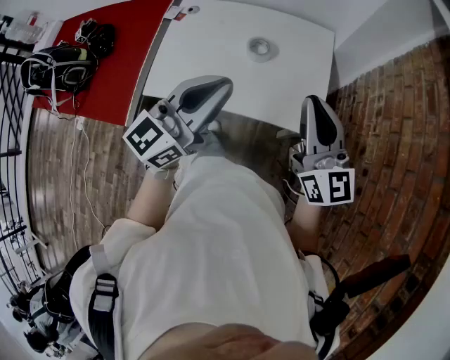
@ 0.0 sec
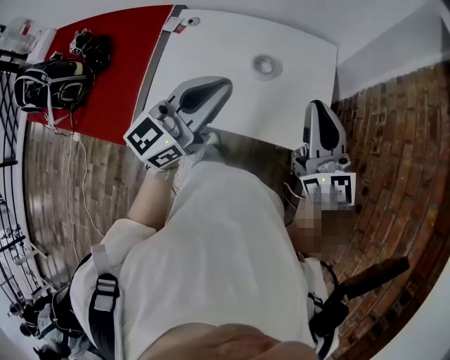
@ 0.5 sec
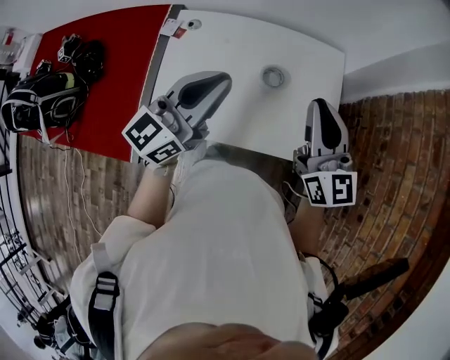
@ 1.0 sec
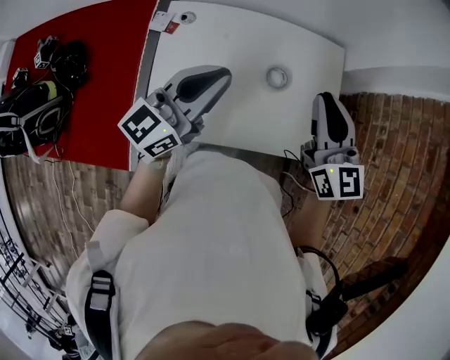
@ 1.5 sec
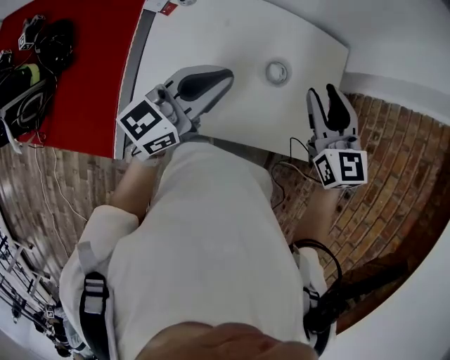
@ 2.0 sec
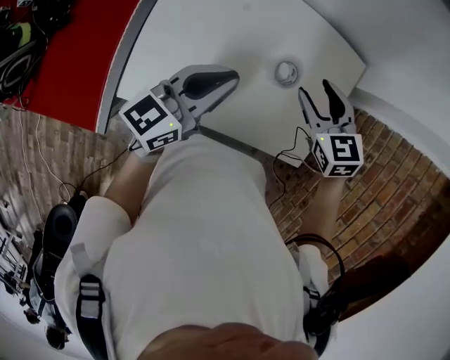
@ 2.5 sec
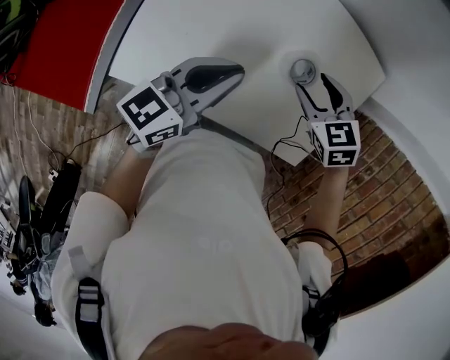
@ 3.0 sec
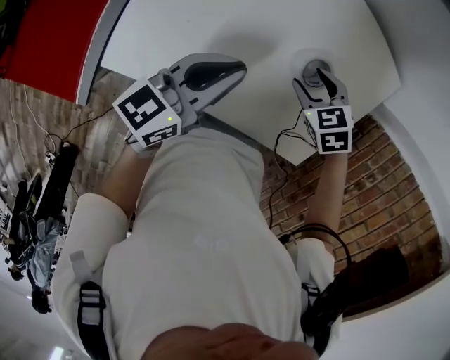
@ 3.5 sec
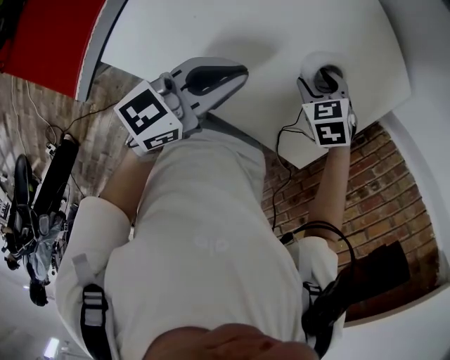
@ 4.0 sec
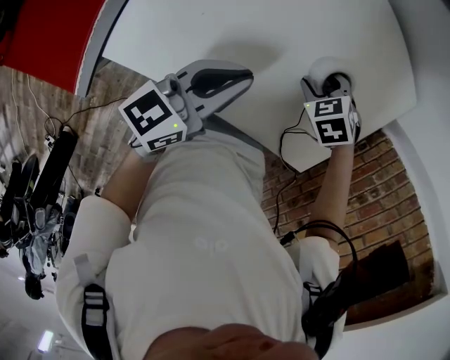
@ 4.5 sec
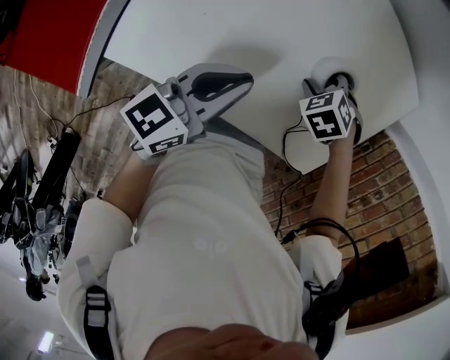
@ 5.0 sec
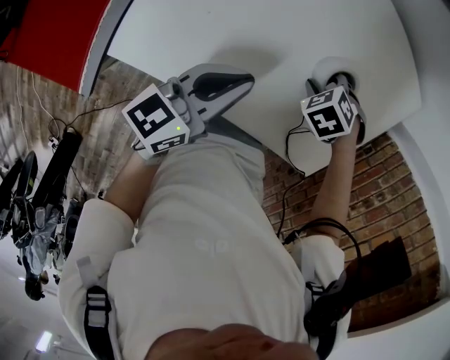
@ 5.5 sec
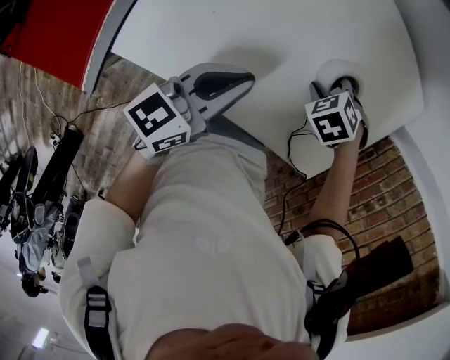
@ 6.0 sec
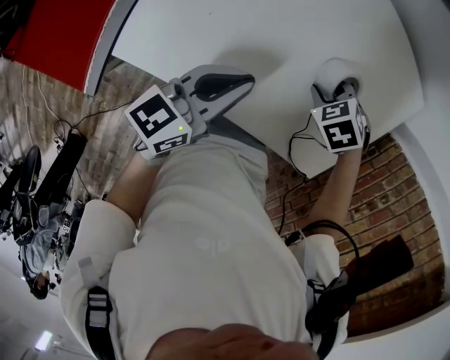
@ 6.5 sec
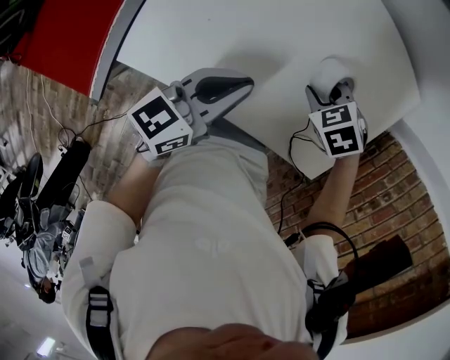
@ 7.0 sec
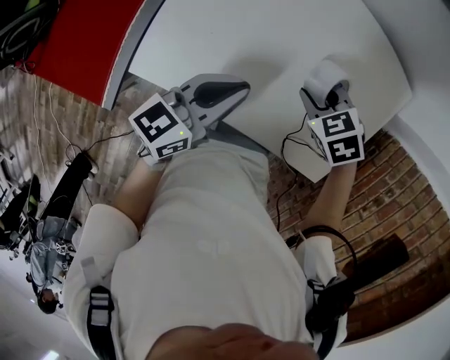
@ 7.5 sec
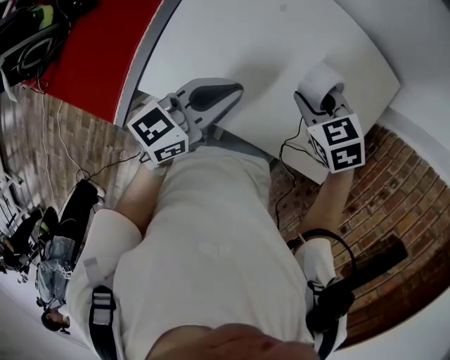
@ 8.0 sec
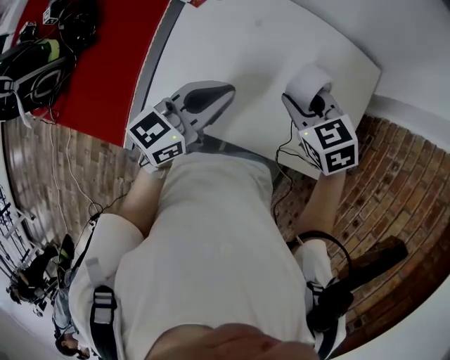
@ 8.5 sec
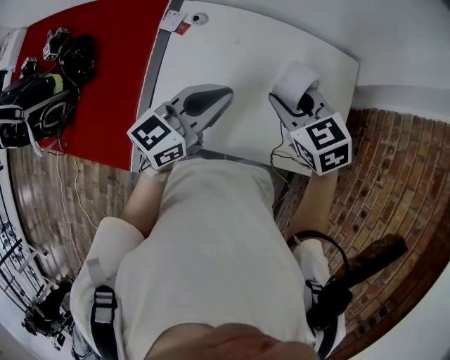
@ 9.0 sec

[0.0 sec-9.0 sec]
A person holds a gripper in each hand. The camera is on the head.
0.0 sec to 2.0 sec: The right gripper goes about 35 cm forward and to the left, tilts its fingers about 30 degrees downward, and opens its fingers. Meanwhile the left gripper heads to the left, forward and downward, covering about 35 cm.
2.0 sec to 4.5 sec: The right gripper moves downward, about 40 cm, and tilts its fingers about 60 degrees downward, while the left gripper goes approximately 25 cm downward, and turns by roughly 30 degrees.
4.5 sec to 7.0 sec: The right gripper closes.
7.0 sec to 9.0 sec: The two grippers go about 25 cm upward. The left gripper rotates approximately 30 degrees, while the right gripper tilts its fingers some 40 degrees upward.

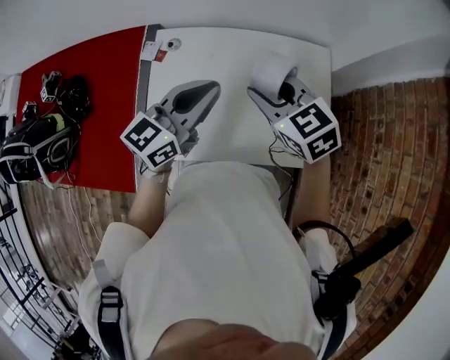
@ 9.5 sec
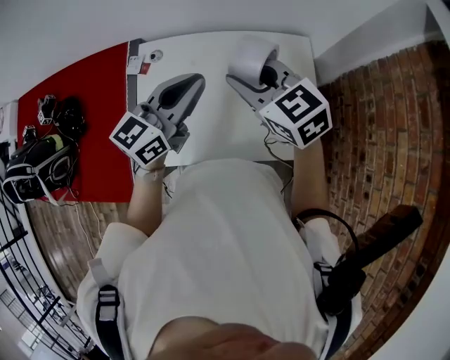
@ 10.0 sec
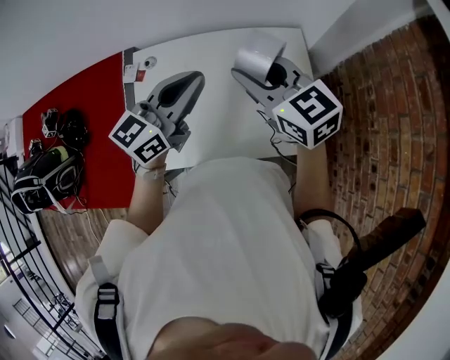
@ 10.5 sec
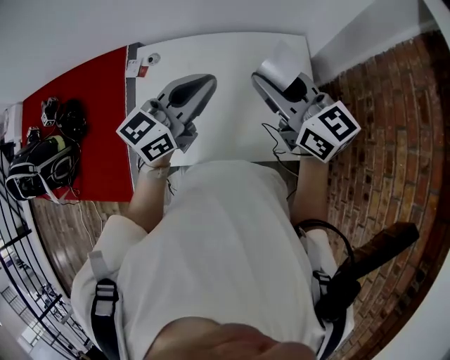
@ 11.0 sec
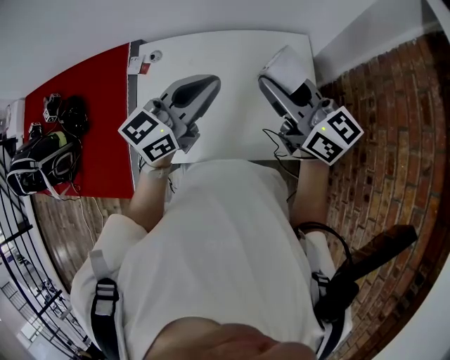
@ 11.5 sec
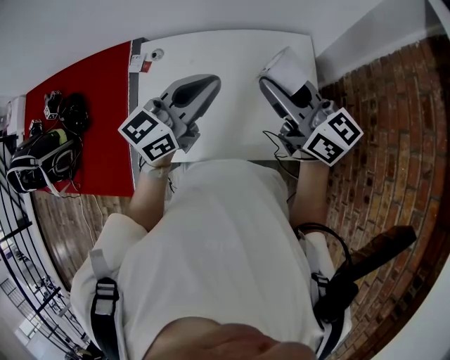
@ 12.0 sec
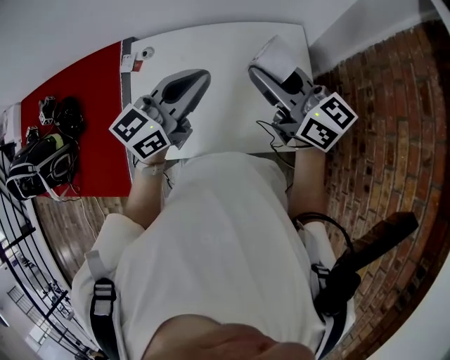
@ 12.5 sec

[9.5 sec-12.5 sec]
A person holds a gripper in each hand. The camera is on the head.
9.5 sec to 11.0 sec: The left gripper travels to the right by approximately 10 cm. Meanwhile the right gripper shifts some 15 cm to the right and upward, and angles its fingers upward, by approximately 30 degrees.
11.0 sec to 12.5 sec: The grippers stay close to where they were, moving slightly.

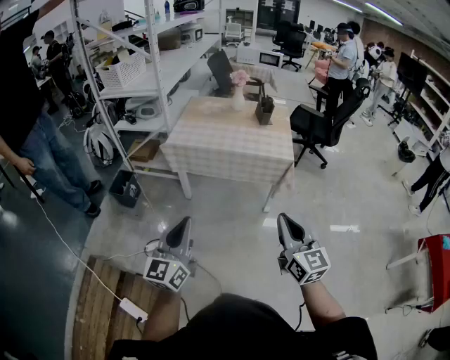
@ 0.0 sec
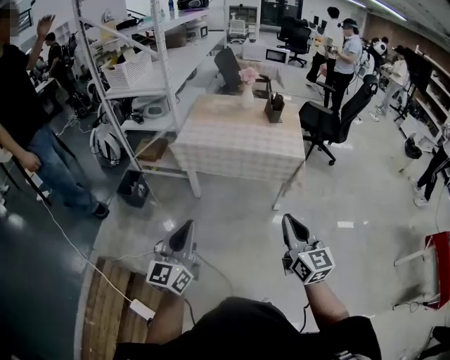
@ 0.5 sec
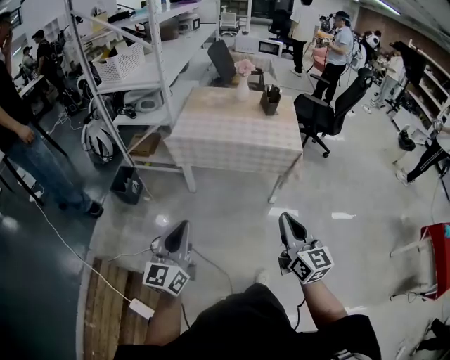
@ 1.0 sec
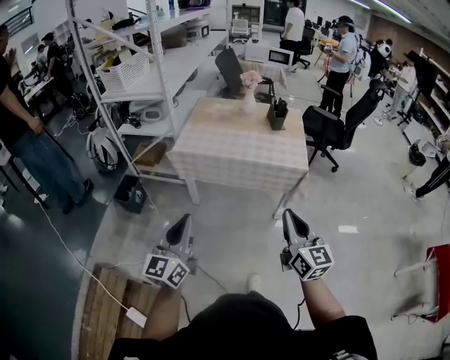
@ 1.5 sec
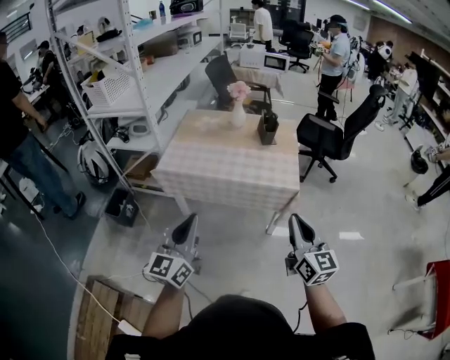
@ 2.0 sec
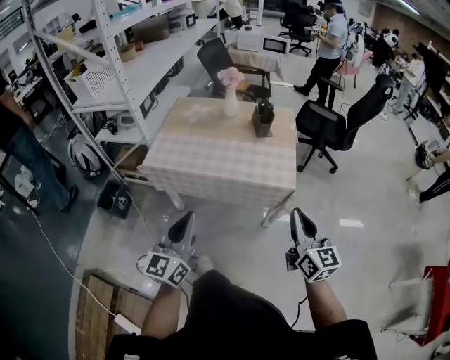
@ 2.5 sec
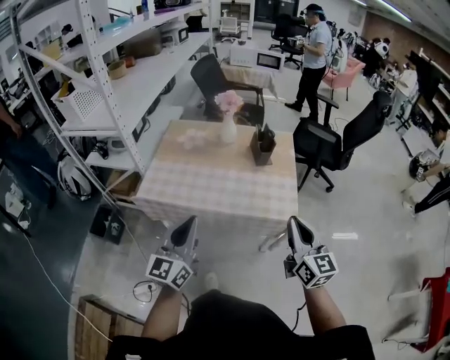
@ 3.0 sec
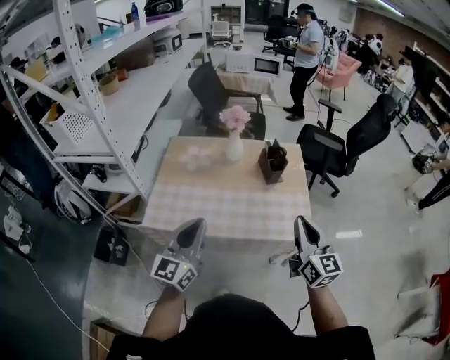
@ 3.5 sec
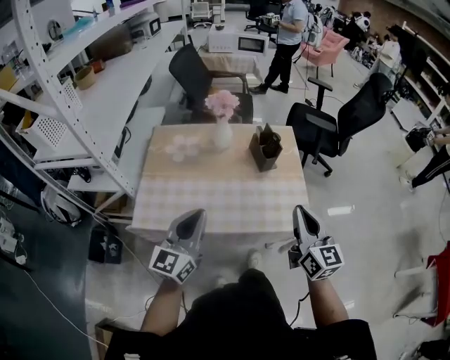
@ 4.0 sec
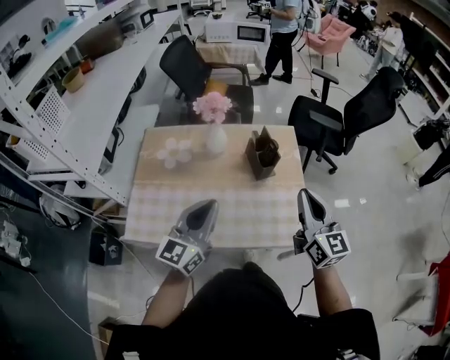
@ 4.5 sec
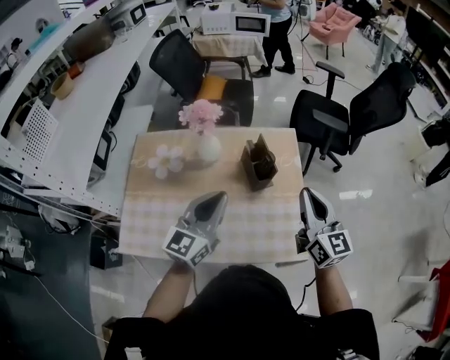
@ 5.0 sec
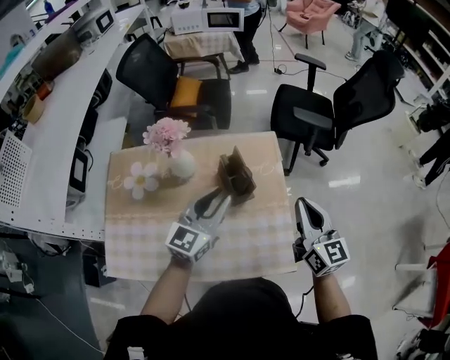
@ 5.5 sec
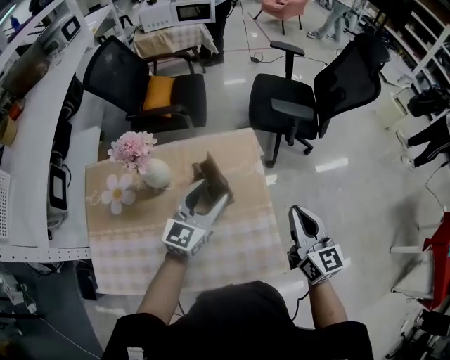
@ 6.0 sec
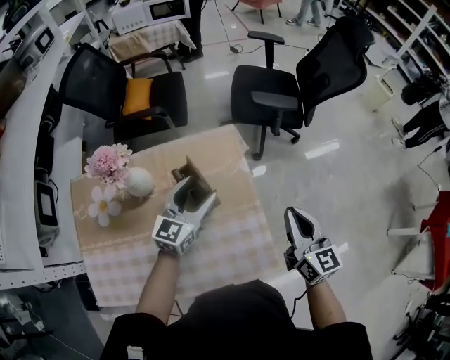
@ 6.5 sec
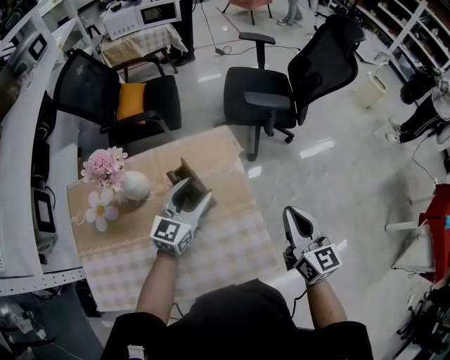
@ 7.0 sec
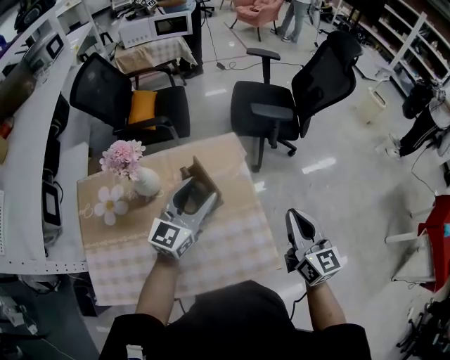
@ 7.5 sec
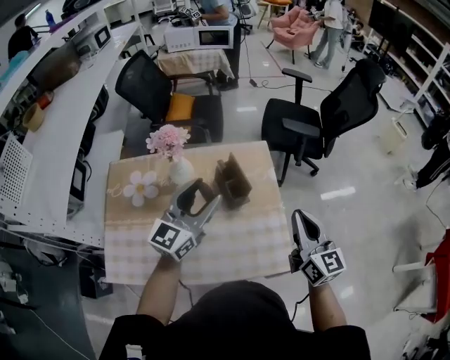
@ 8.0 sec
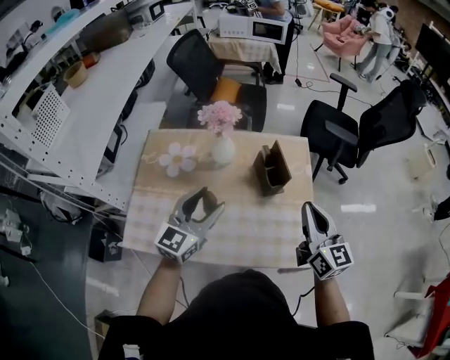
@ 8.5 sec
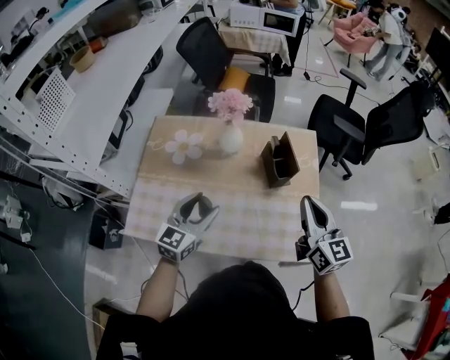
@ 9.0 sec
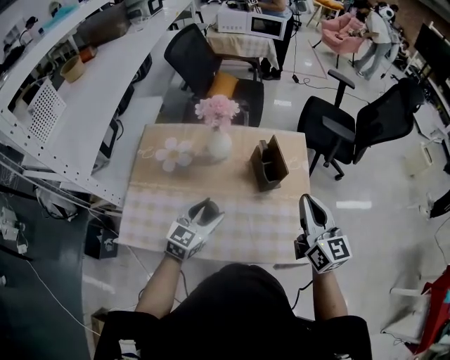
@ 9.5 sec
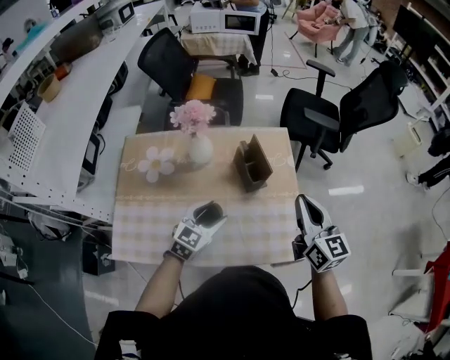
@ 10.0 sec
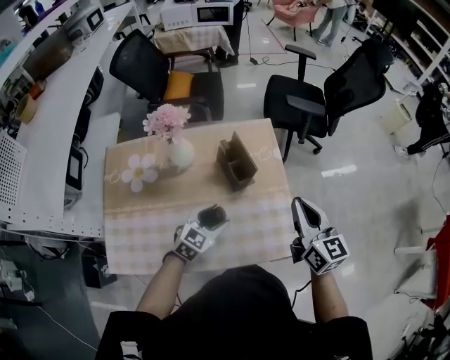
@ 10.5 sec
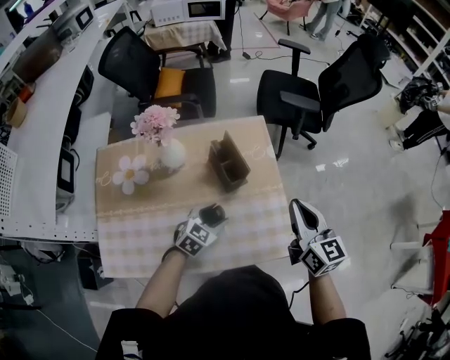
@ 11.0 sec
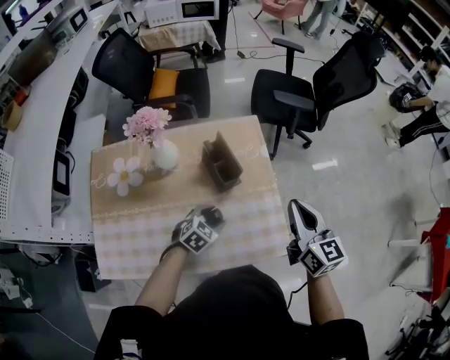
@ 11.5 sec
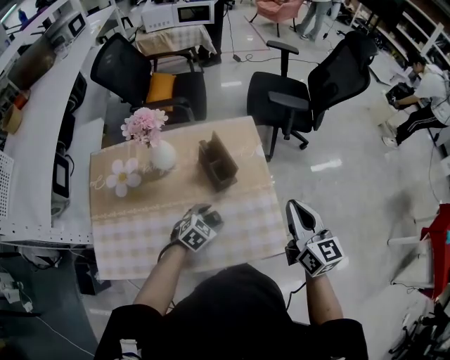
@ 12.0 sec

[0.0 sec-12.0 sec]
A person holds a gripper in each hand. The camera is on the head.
0.0 sec to 2.0 sec: The two grippers go approximately 25 cm forward.
2.0 sec to 4.0 sec: Both grippers move forward, some 40 cm.
4.0 sec to 6.0 sec: The two grippers go about 40 cm forward and to the right. The left gripper opens its fingers.
6.0 sec to 8.0 sec: The right gripper travels backward and upward by about 10 cm. The left gripper heads upward, backward and to the left, covering roughly 15 cm.
8.0 sec to 10.0 sec: The right gripper heads to the left, covering roughly 5 cm. Meanwhile the left gripper heads downward, covering roughly 20 cm, and points its fingers some 30 degrees further downward.
10.0 sec to 12.0 sec: The right gripper heads to the right, covering roughly 5 cm. The left gripper is displaced downward and to the right by about 15 cm, and changes its angle by about 30 degrees.

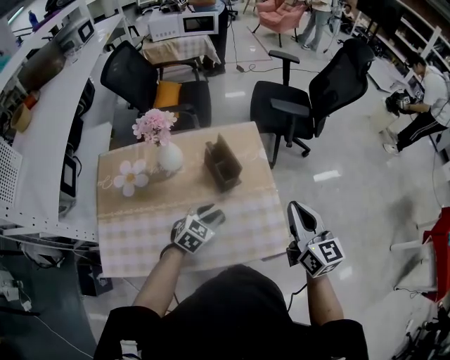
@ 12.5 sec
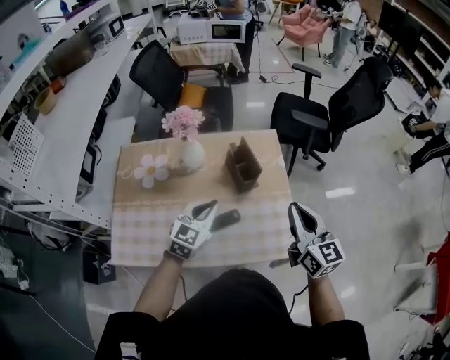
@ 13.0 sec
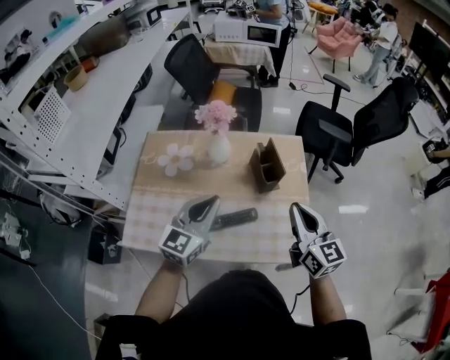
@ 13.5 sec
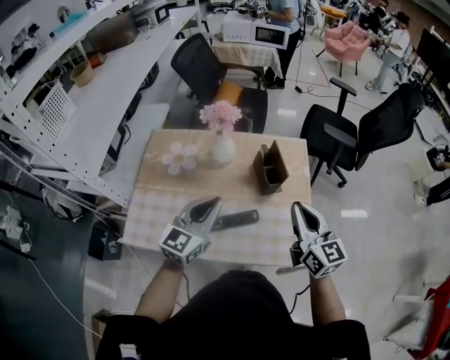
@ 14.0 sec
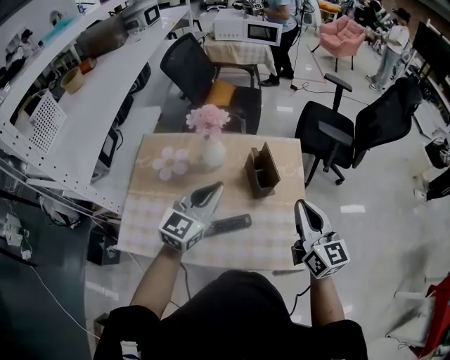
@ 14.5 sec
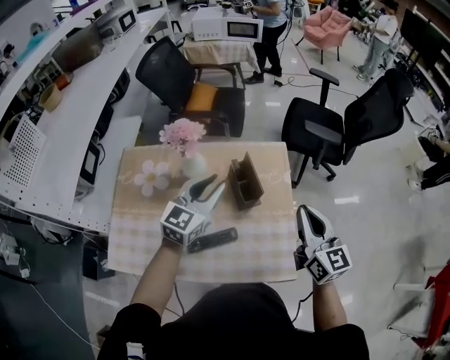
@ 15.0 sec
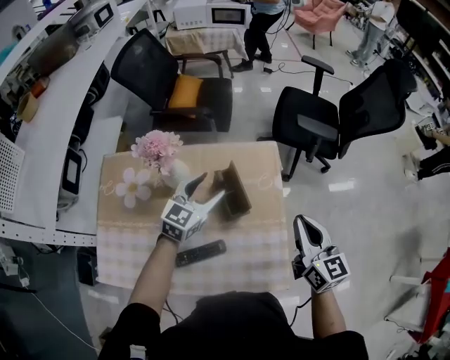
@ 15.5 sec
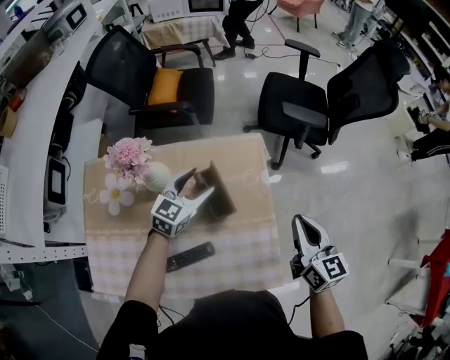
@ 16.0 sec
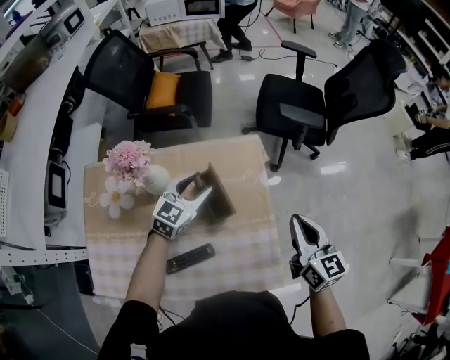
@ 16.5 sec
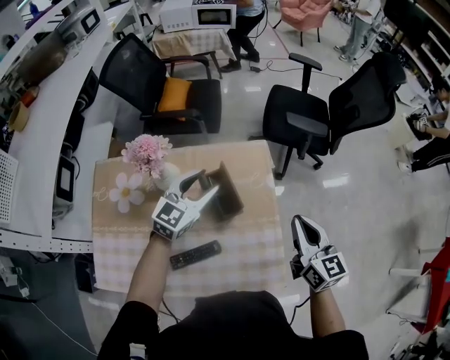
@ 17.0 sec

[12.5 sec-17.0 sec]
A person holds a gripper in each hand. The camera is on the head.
12.5 sec to 14.5 sec: The right gripper moves to the left, roughly 10 cm. Meanwhile the left gripper heads upward and to the left, covering roughly 25 cm, points its fingers roughly 30 degrees further upward, and closes its fingers.
14.5 sec to 17.0 sec: The left gripper is displaced forward and downward by some 20 cm, and opens. The right gripper heads forward, to the right and downward, covering roughly 15 cm.
